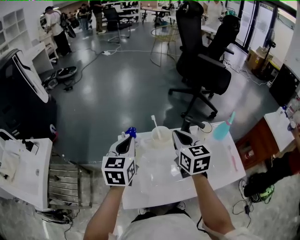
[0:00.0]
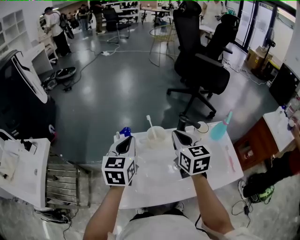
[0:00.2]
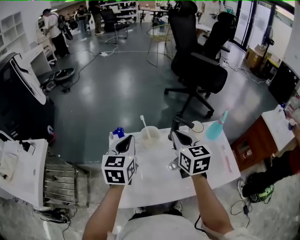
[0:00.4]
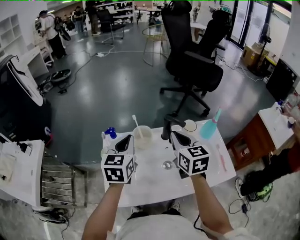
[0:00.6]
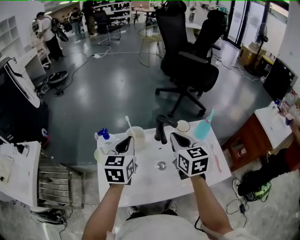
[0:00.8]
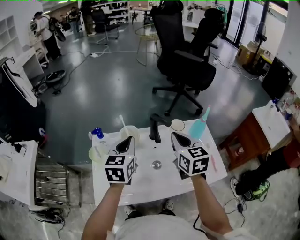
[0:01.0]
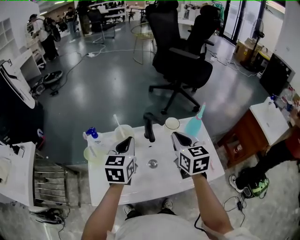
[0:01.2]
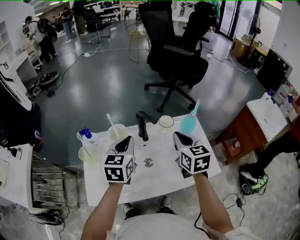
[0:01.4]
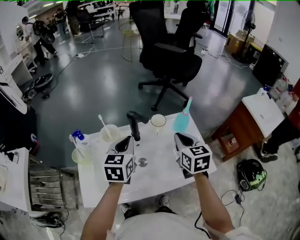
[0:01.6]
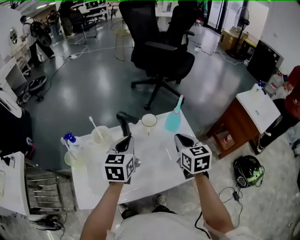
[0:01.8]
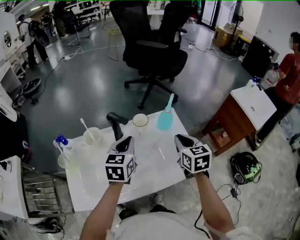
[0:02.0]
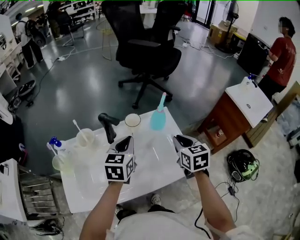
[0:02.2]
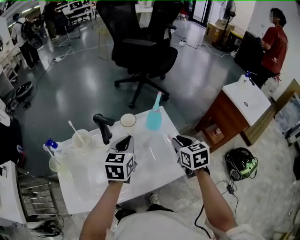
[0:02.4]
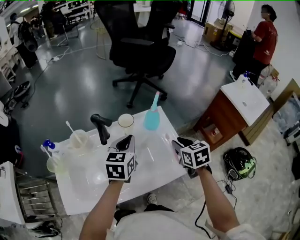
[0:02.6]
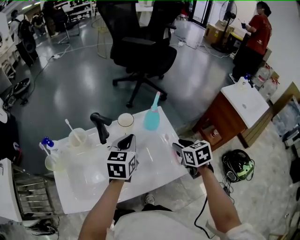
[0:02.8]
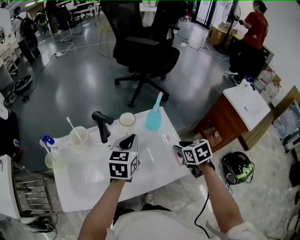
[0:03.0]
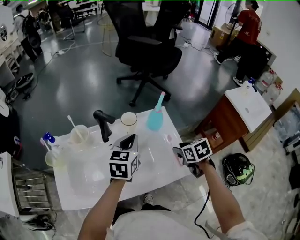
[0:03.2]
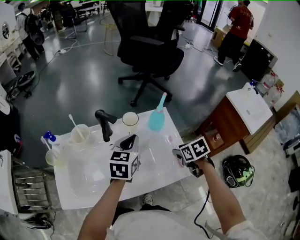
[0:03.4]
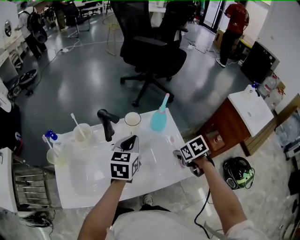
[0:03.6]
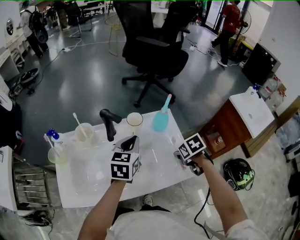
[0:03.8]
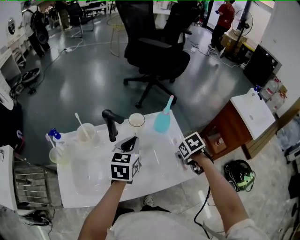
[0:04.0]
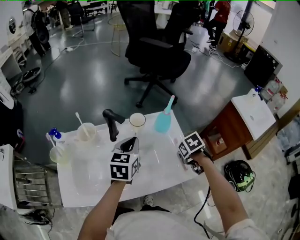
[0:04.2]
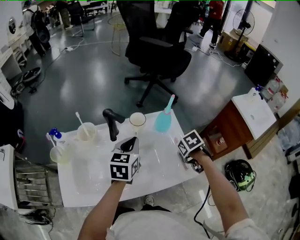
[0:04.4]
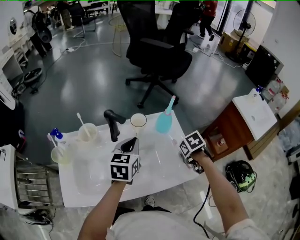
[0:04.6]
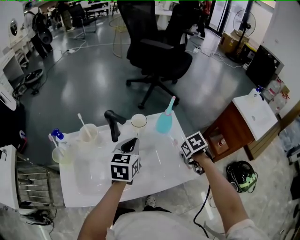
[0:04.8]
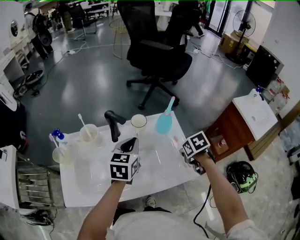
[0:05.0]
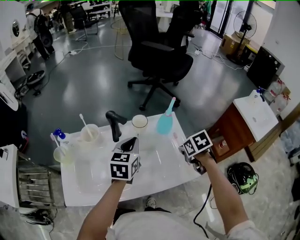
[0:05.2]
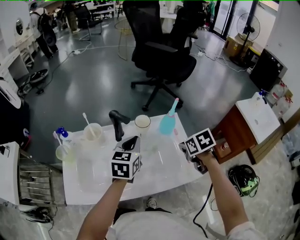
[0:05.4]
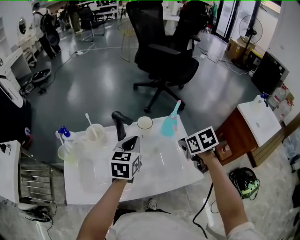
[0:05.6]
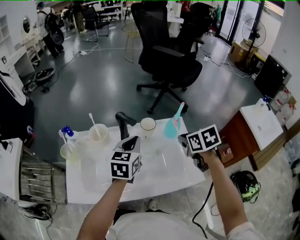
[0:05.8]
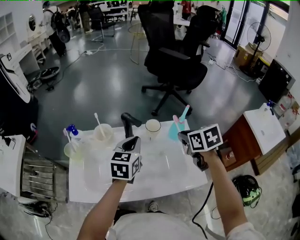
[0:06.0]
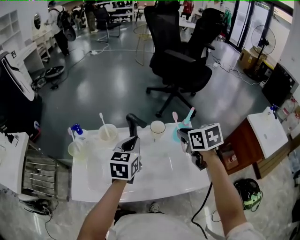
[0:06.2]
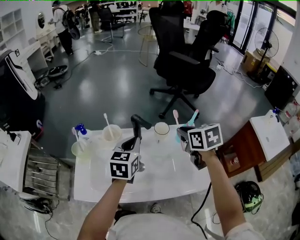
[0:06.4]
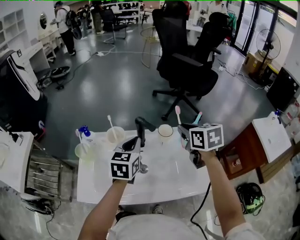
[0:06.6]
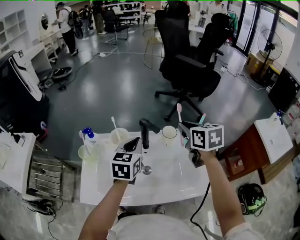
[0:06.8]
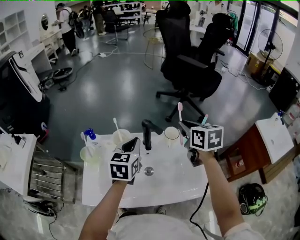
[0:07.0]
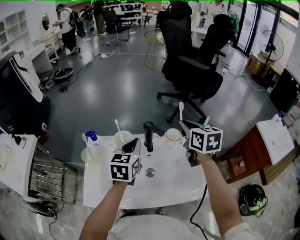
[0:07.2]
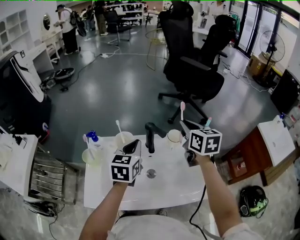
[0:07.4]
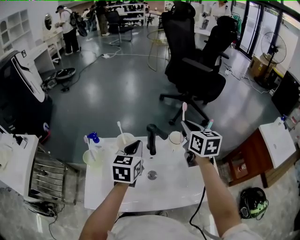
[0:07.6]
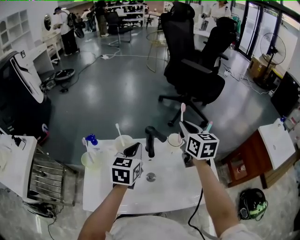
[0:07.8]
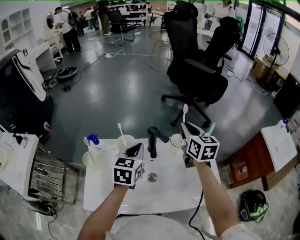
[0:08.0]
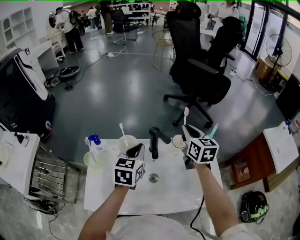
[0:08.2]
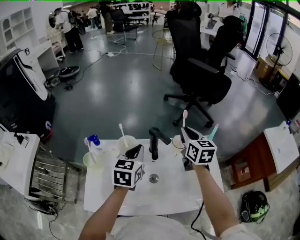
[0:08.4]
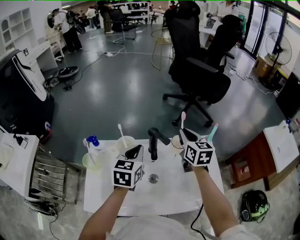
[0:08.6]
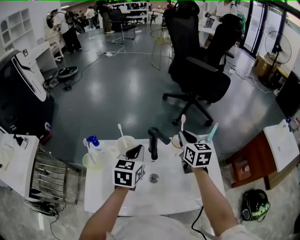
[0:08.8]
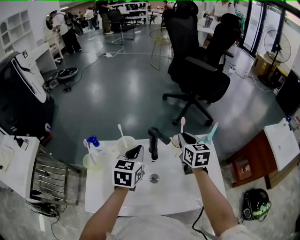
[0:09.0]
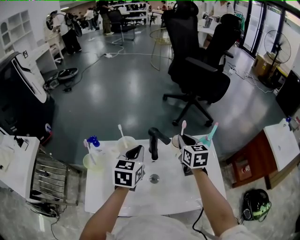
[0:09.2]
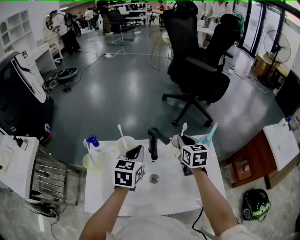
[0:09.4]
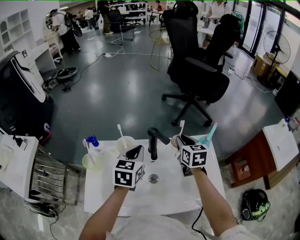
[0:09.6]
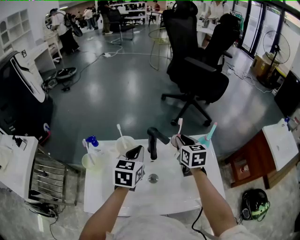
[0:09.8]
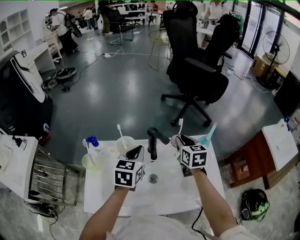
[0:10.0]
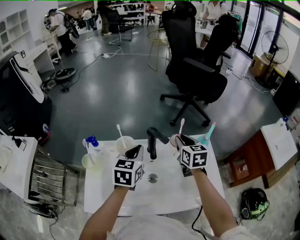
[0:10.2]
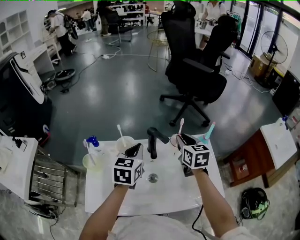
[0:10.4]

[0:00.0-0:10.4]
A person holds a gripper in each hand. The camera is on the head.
0:00.0 to 0:01.4: The grippers both shift to the right by roughly 20 cm.
0:01.4 to 0:03.0: The left gripper shifts about 20 cm to the right. The right gripper heads to the right and downward, covering roughly 25 cm, changes its angle by about 30 degrees, and opens up.
0:03.0 to 0:04.4: The right gripper heads downward, covering some 5 cm, and rotates roughly 30 degrees.
0:04.4 to 0:06.0: The left gripper ends up about 5 cm from where it was. The right gripper heads upward, covering roughly 15 cm, and angles its fingers upward, by approximately 30 degrees.
0:06.0 to 0:07.4: The right gripper goes approximately 15 cm forward, to the left and upward, and turns by some 30 degrees. The left gripper moves to the left, approximately 10 cm.
0:07.4 to 0:09.0: The right gripper moves downward, about 10 cm.
0:09.0 to 0:10.4: There are only small adjustments of the grippers.

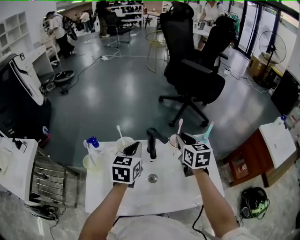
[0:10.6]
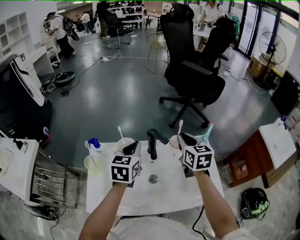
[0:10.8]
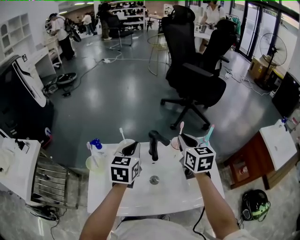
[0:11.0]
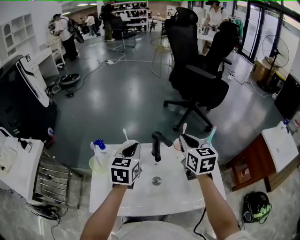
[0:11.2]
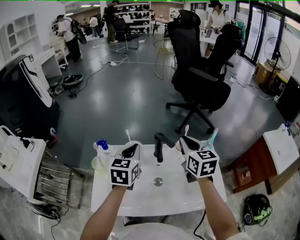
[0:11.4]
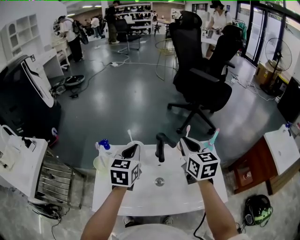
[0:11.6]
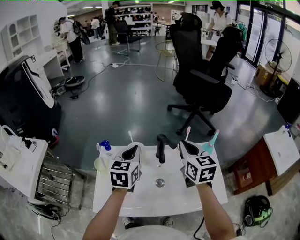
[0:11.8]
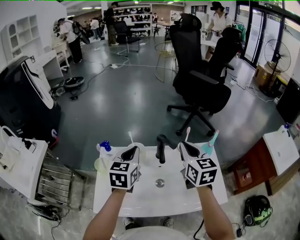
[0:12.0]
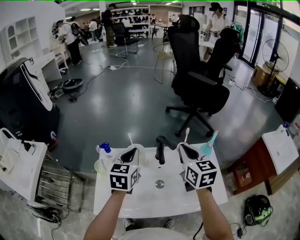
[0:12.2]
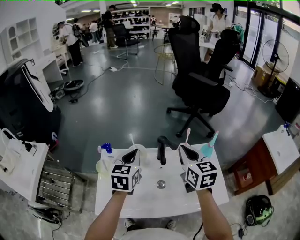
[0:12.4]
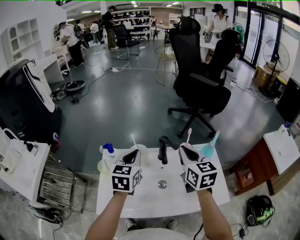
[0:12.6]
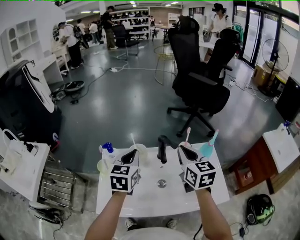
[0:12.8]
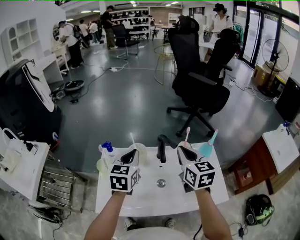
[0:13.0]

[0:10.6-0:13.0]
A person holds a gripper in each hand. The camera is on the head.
0:10.6 to 0:11.8: The right gripper shifts about 5 cm upward; the left gripper changes place by about 5 cm.
0:11.8 to 0:13.0: There are only small adjustments of the grippers.

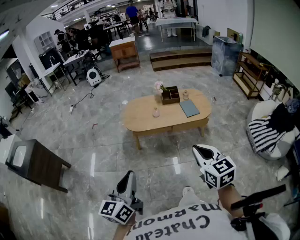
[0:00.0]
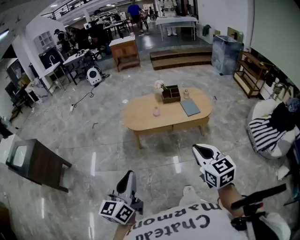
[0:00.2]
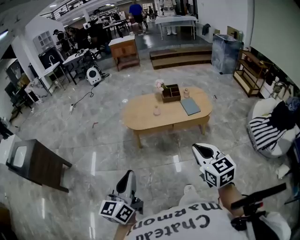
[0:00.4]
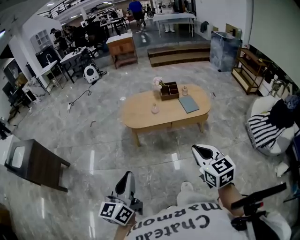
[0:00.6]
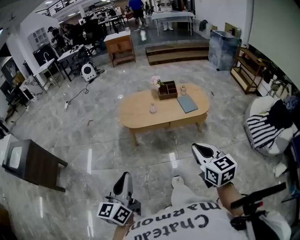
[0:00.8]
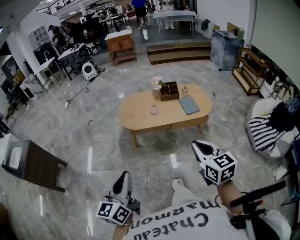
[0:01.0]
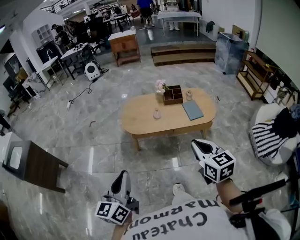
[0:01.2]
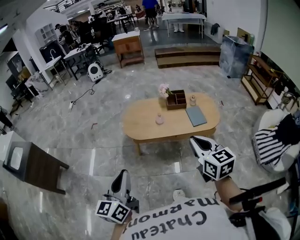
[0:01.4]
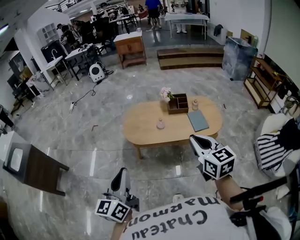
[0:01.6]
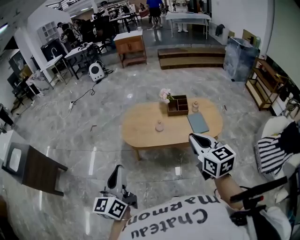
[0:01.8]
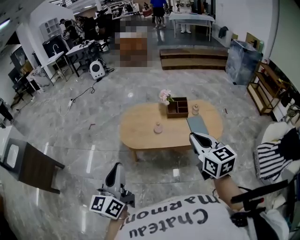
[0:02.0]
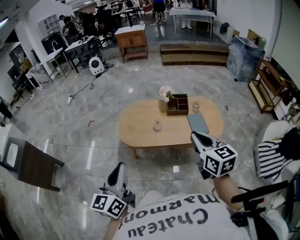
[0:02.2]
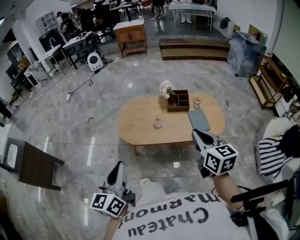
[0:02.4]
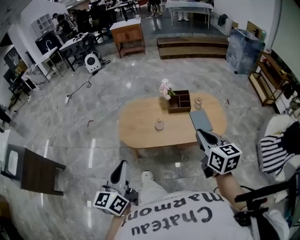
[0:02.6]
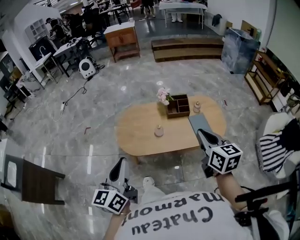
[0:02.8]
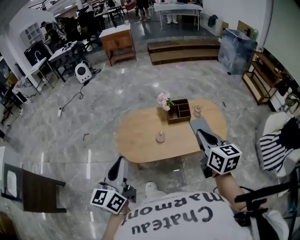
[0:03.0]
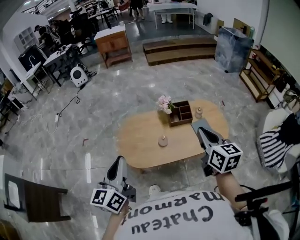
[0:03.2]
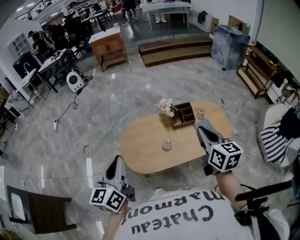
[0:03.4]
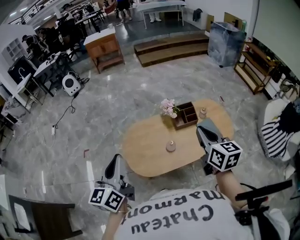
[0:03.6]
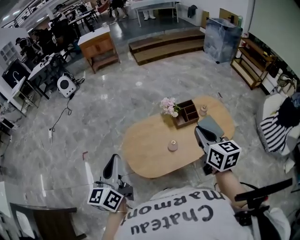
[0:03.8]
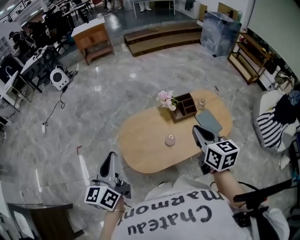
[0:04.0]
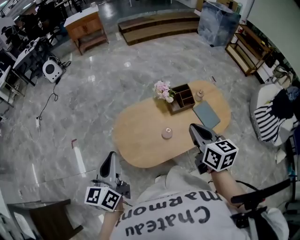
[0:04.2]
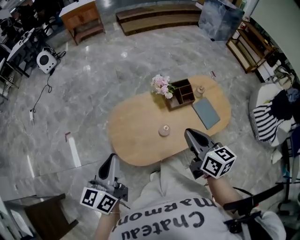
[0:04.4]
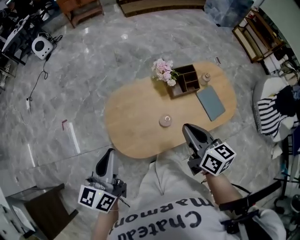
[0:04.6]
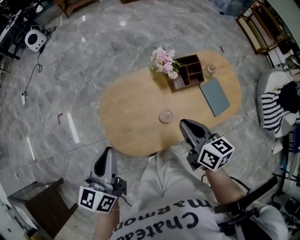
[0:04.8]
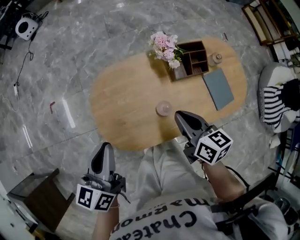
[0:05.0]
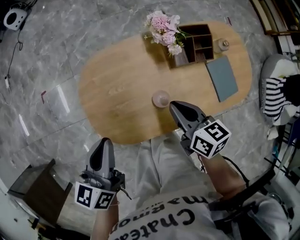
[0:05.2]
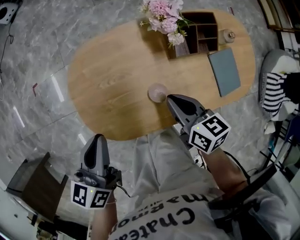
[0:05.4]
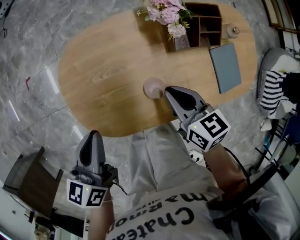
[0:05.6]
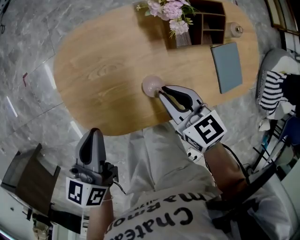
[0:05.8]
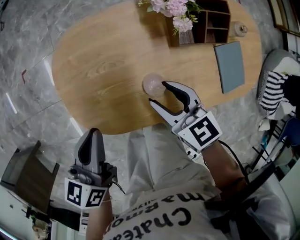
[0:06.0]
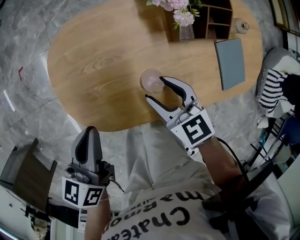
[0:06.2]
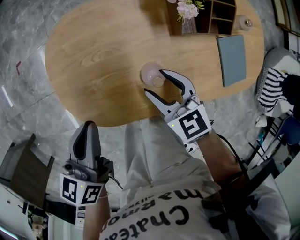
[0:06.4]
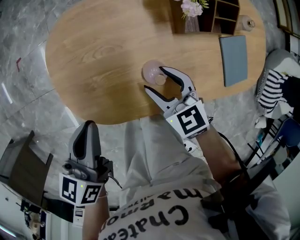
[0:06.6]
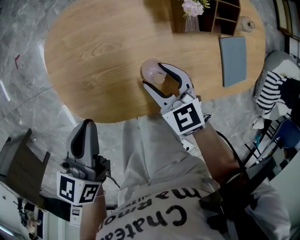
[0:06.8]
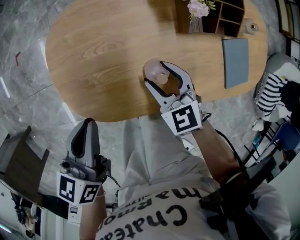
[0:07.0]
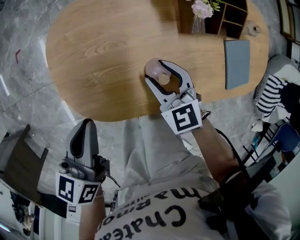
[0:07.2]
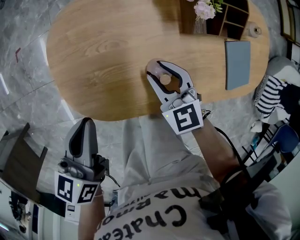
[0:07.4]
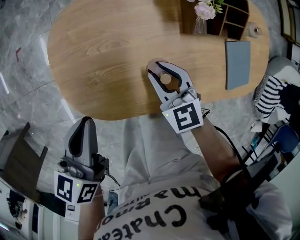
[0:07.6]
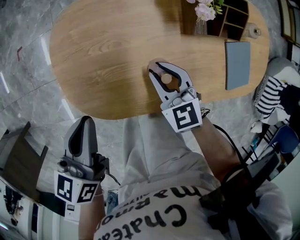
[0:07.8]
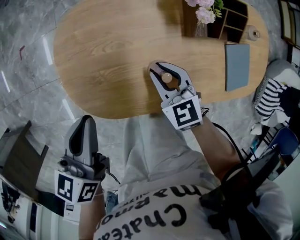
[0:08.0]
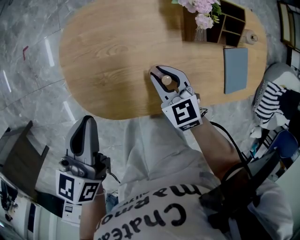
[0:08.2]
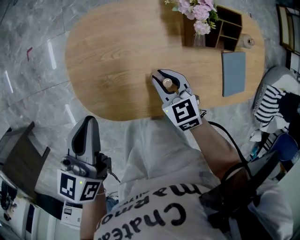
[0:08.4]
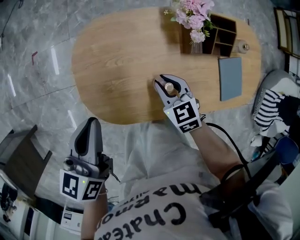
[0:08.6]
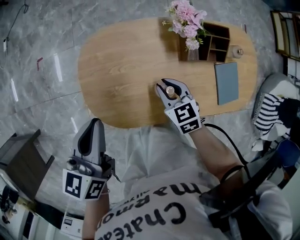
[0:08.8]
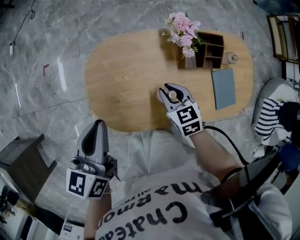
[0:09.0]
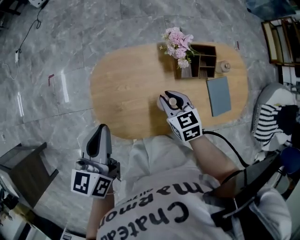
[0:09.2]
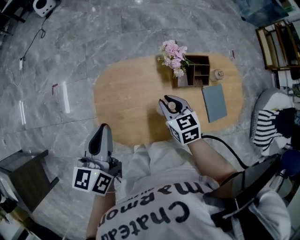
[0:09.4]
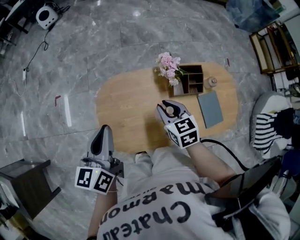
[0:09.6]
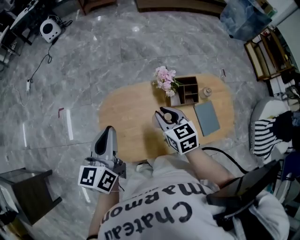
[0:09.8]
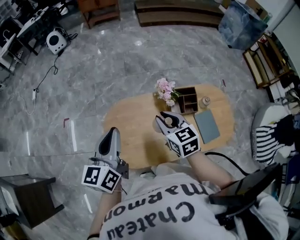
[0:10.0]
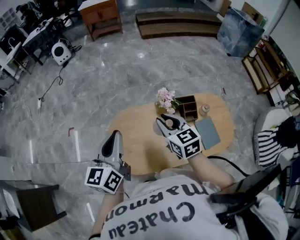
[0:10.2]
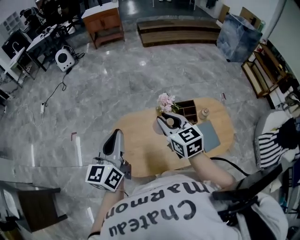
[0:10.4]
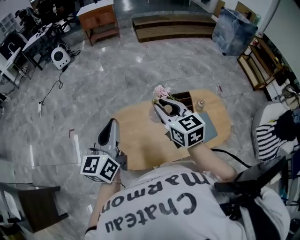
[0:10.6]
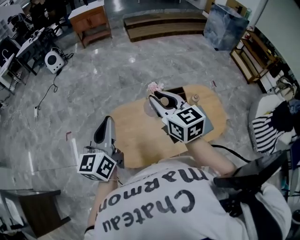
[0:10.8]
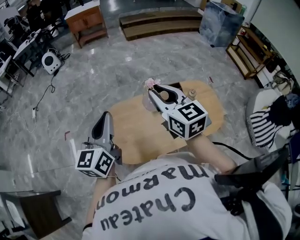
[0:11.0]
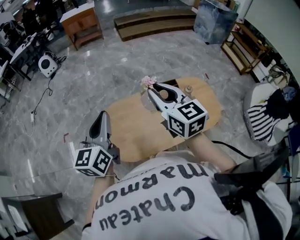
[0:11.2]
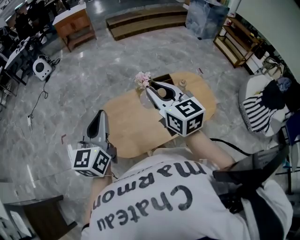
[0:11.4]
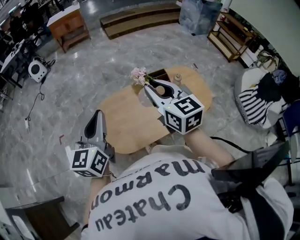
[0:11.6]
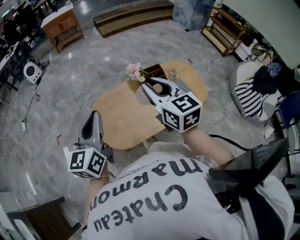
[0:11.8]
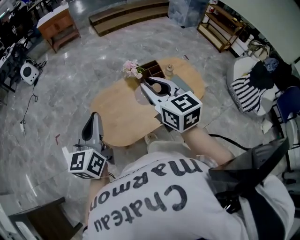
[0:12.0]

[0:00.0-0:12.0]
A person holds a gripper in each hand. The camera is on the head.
0:00.0 to 0:01.6: Both grippers travel together forward, roughly 25 cm.
0:01.6 to 0:03.0: Both grippers move forward, some 25 cm.
0:03.0 to 0:04.4: The right gripper goes some 20 cm to the left, forward and downward. Meanwhile the left gripper is displaced forward, to the left and downward by approximately 25 cm.
0:04.4 to 0:06.0: Both grippers travel together downward, about 30 cm. The right gripper changes its angle by about 40 degrees, and opens; the left gripper turns by about 20 degrees.
0:06.0 to 0:07.6: The right gripper is displaced downward by approximately 5 cm, and closes its fingers.
0:07.6 to 0:09.0: The left gripper moves upward, approximately 15 cm. Meanwhile the right gripper moves upward, some 5 cm.
0:09.0 to 0:10.4: The left gripper is displaced upward by approximately 20 cm, and changes its angle by some 20 degrees. The right gripper heads upward, covering some 30 cm, and changes its angle by roughly 30 degrees.
0:10.4 to 0:12.0: The right gripper heads backward and upward, covering about 20 cm, while the left gripper travels backward by approximately 15 cm.
